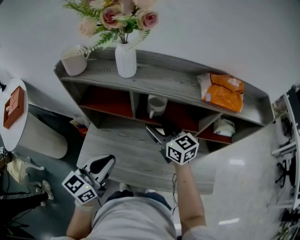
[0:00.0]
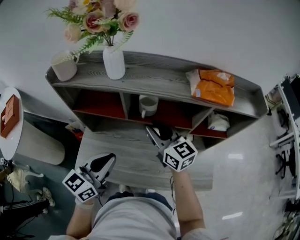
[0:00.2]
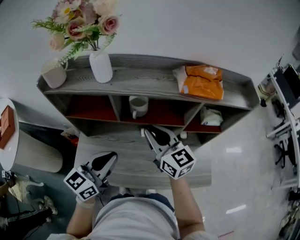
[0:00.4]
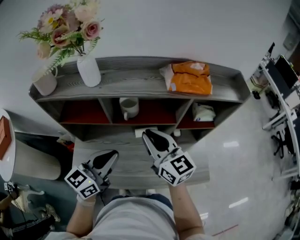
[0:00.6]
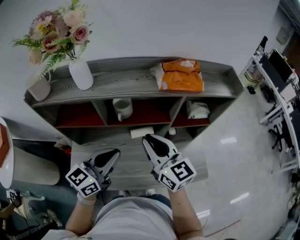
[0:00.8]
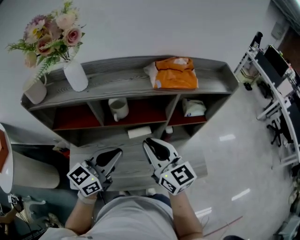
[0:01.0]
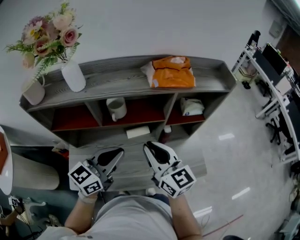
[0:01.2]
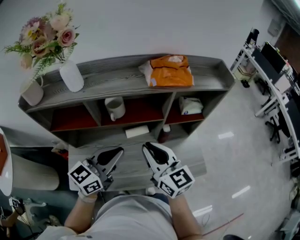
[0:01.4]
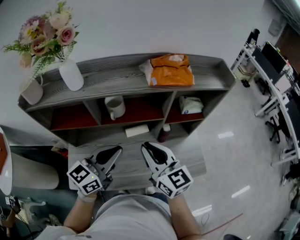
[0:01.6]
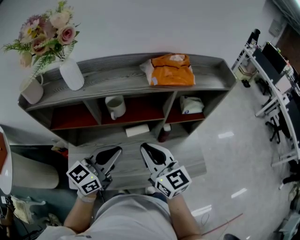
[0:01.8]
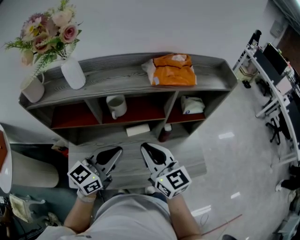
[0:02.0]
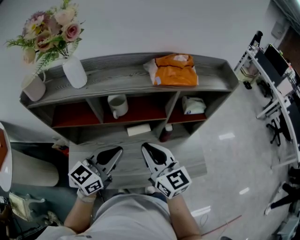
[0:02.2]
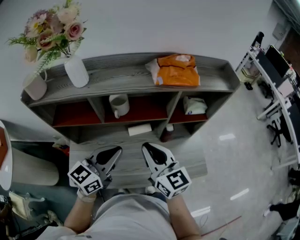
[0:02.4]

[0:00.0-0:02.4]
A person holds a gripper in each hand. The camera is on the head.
0:00.0 to 0:01.2: The left gripper goes about 15 cm to the right and forward, and rotates roughly 20 degrees, while the right gripper shifts some 15 cm to the right and backward, swivels about 30 degrees, and closes its fingers.
0:01.2 to 0:02.4: The grippers make only small movements.

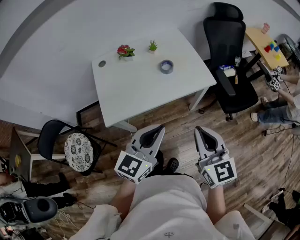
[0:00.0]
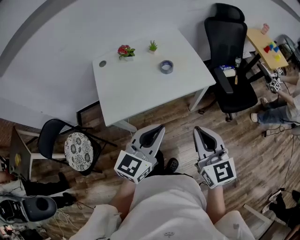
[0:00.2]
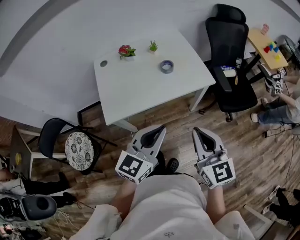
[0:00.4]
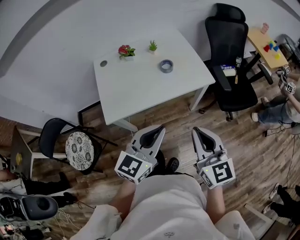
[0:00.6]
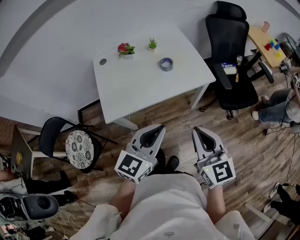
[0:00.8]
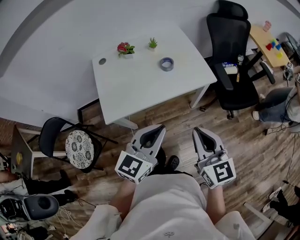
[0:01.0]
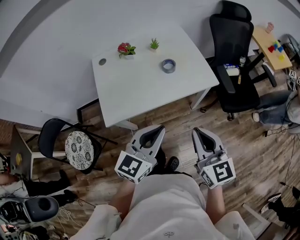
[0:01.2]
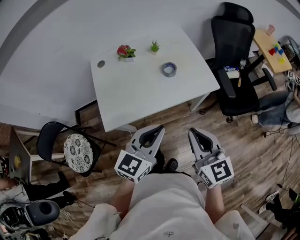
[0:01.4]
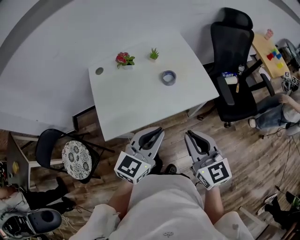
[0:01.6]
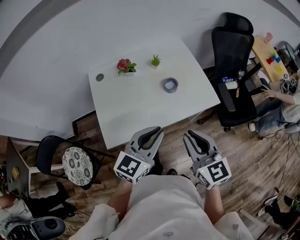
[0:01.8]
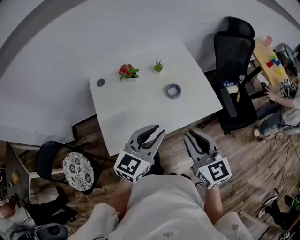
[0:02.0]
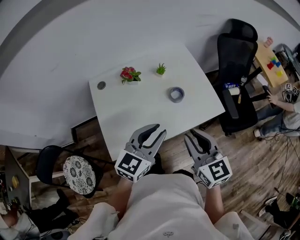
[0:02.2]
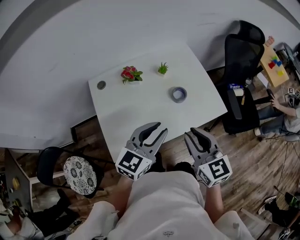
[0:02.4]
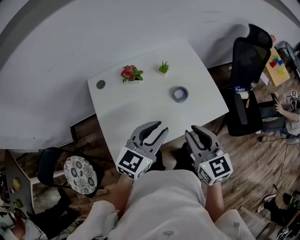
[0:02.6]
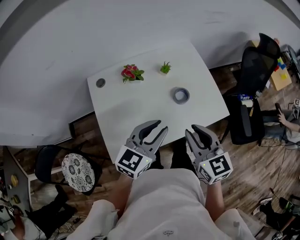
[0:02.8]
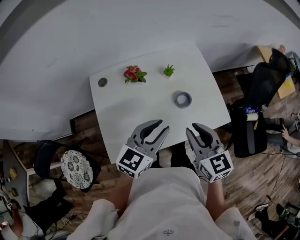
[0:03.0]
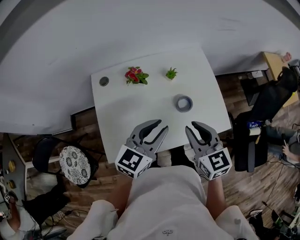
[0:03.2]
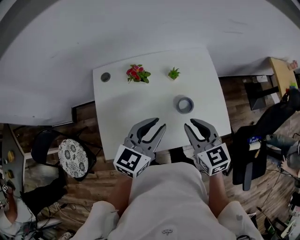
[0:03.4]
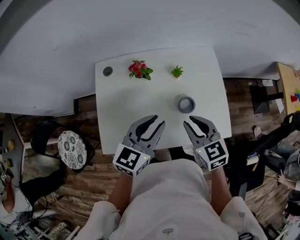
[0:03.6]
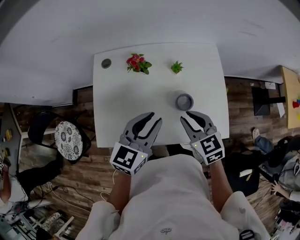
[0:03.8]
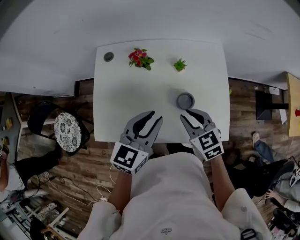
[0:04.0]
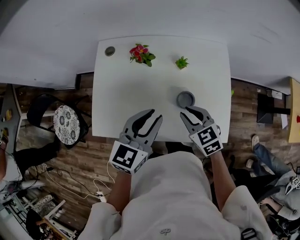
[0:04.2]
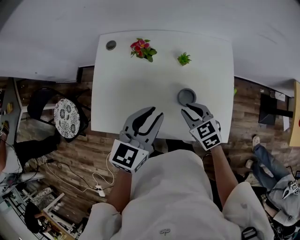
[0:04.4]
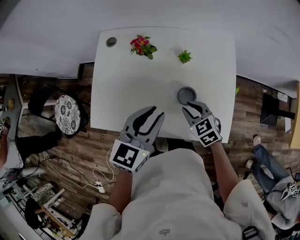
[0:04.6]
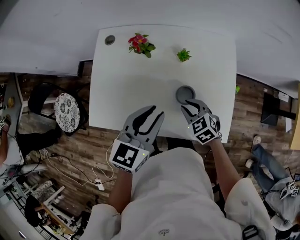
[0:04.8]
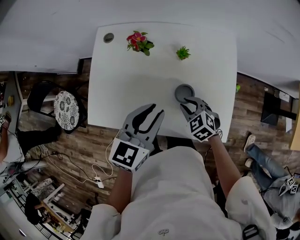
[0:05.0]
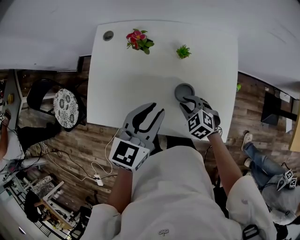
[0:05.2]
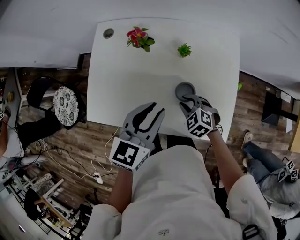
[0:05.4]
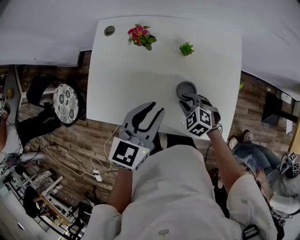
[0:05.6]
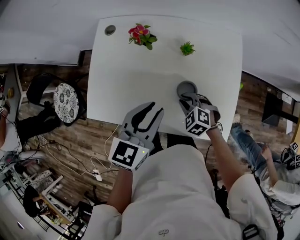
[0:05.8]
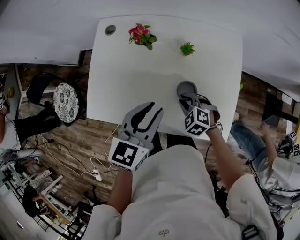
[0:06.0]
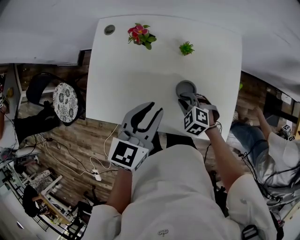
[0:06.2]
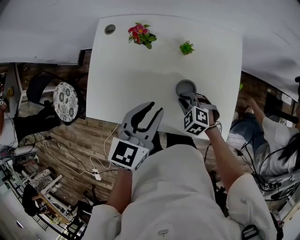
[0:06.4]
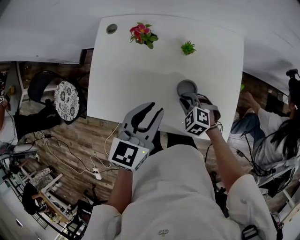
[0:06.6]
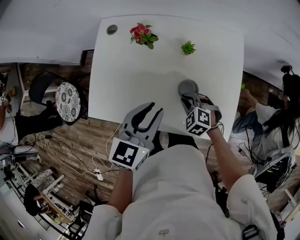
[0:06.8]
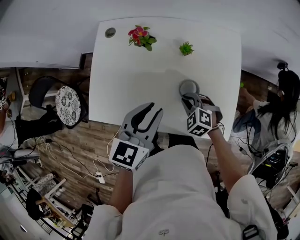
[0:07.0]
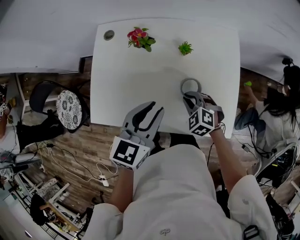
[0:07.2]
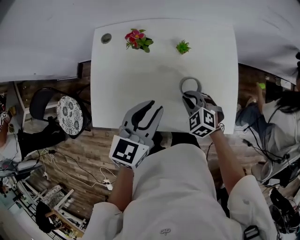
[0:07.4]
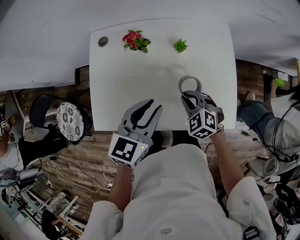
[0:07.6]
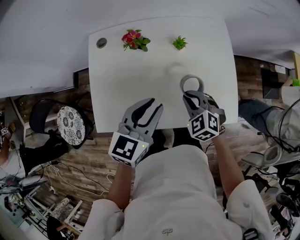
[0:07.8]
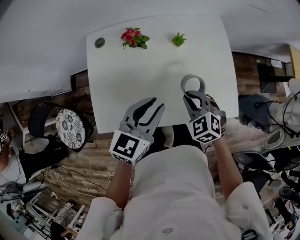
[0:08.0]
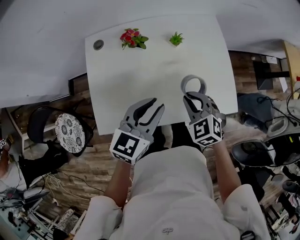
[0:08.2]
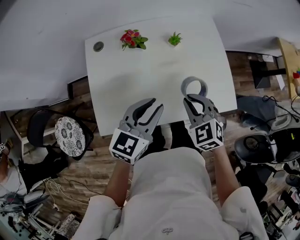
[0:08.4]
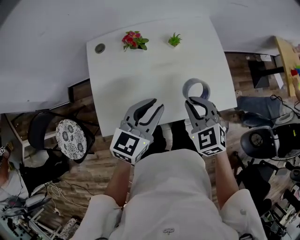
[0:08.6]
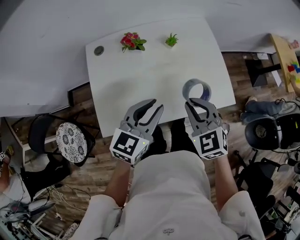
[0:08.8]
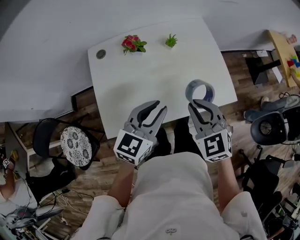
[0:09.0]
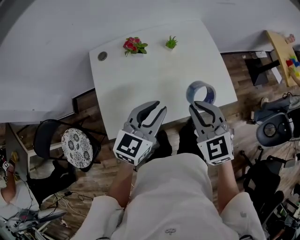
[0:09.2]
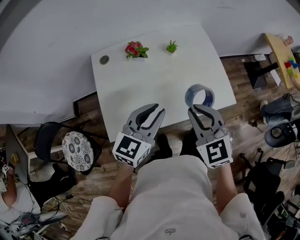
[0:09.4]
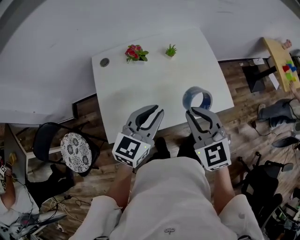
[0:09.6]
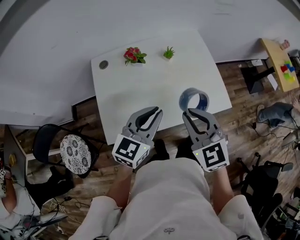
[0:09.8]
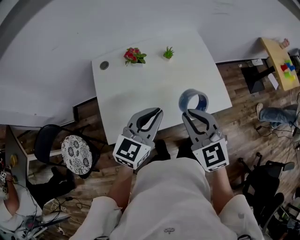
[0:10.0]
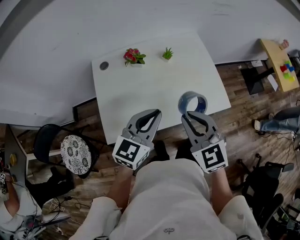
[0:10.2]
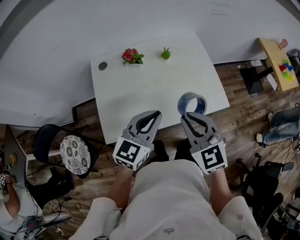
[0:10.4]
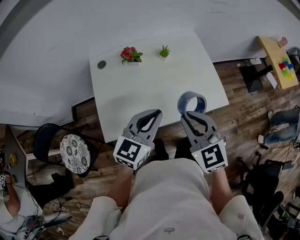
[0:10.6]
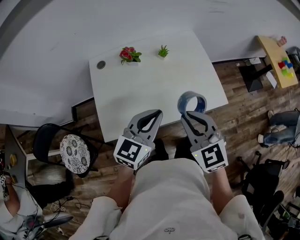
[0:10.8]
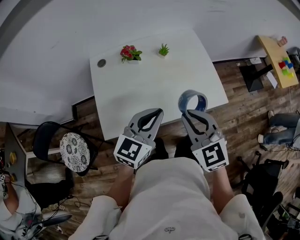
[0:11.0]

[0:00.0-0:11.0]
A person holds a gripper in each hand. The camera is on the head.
0:00.0 to 0:01.6: The right gripper travels forward and to the left by approximately 10 cm. Meanwhile the left gripper moves forward, some 10 cm.
0:01.6 to 0:03.2: The left gripper shifts about 20 cm forward and to the left, and opens. The right gripper goes approximately 20 cm forward.
0:03.2 to 0:04.8: The left gripper shifts by some 5 cm, and changes its angle by roughly 30 degrees. Meanwhile the right gripper travels downward by some 20 cm, and changes its angle by some 50 degrees.
0:04.8 to 0:06.2: The right gripper ends up about 5 cm from where it was, and rotates approximately 20 degrees.
0:06.2 to 0:07.8: The right gripper goes roughly 10 cm upward, and rotates about 20 degrees.
0:07.8 to 0:09.4: The left gripper travels backward by approximately 10 cm. Meanwhile the right gripper travels upward and backward by roughly 20 cm, and turns by approximately 30 degrees.
0:09.4 to 0:11.0: The left gripper moves approximately 5 cm.

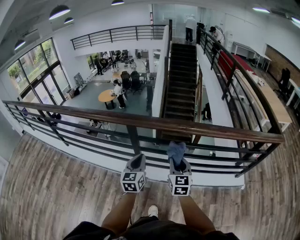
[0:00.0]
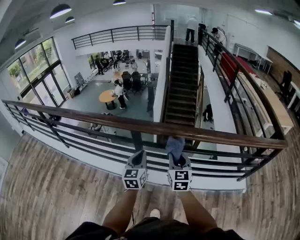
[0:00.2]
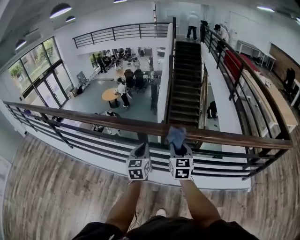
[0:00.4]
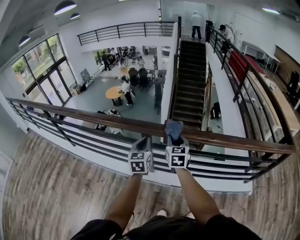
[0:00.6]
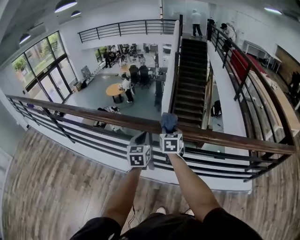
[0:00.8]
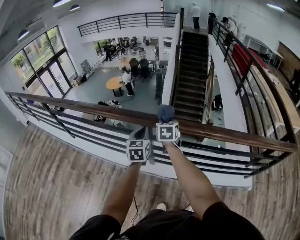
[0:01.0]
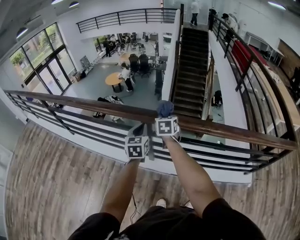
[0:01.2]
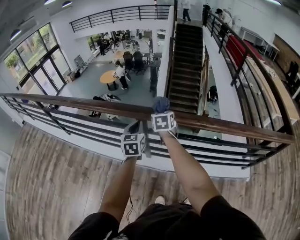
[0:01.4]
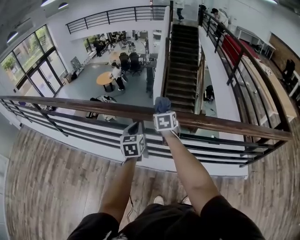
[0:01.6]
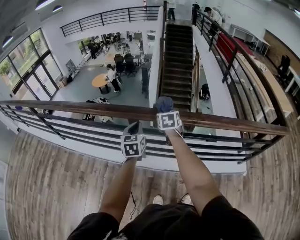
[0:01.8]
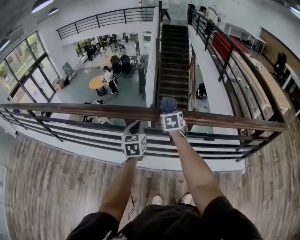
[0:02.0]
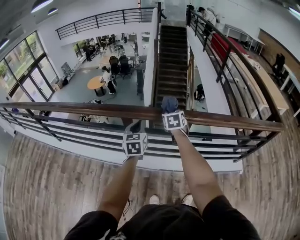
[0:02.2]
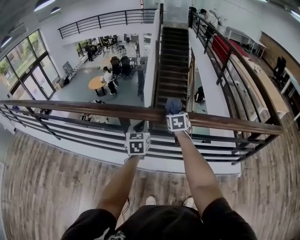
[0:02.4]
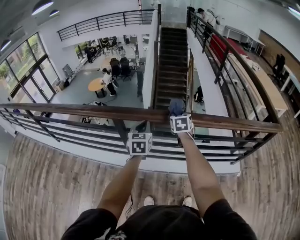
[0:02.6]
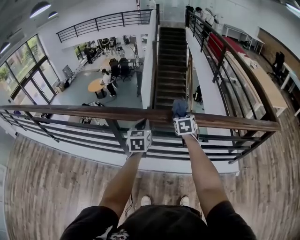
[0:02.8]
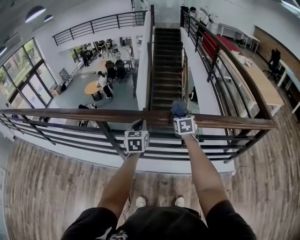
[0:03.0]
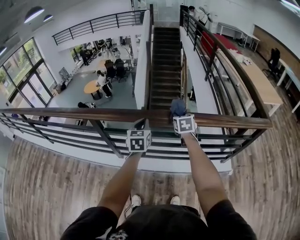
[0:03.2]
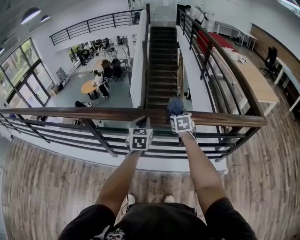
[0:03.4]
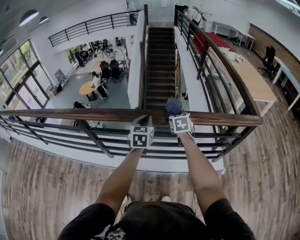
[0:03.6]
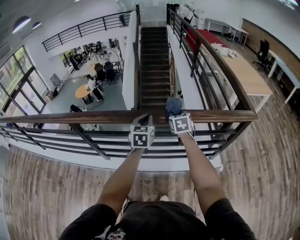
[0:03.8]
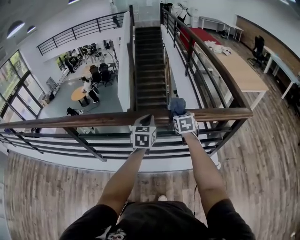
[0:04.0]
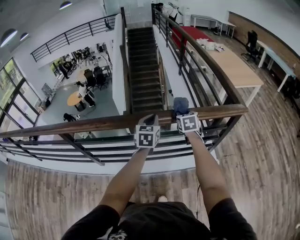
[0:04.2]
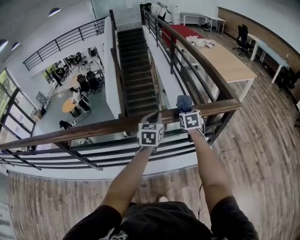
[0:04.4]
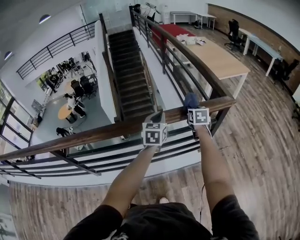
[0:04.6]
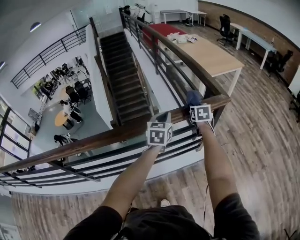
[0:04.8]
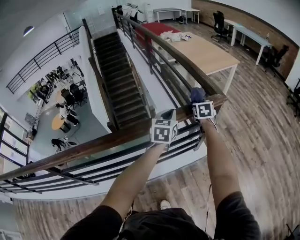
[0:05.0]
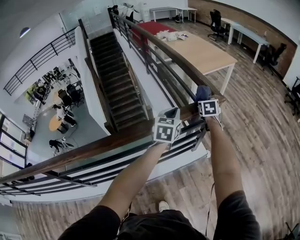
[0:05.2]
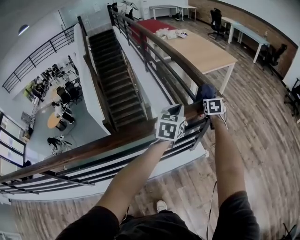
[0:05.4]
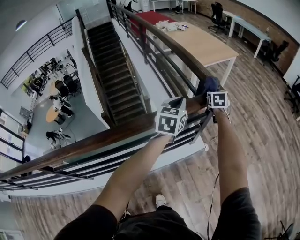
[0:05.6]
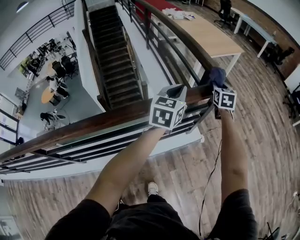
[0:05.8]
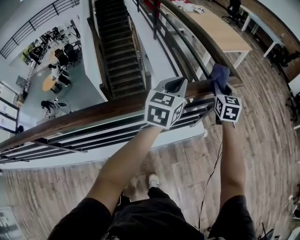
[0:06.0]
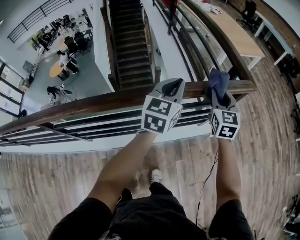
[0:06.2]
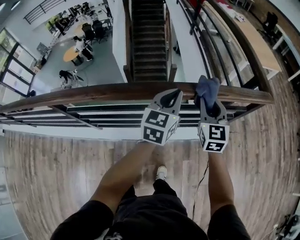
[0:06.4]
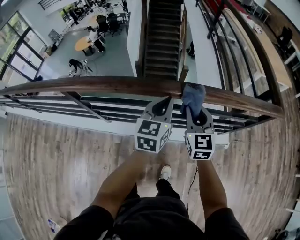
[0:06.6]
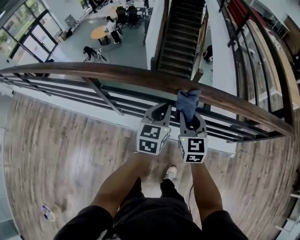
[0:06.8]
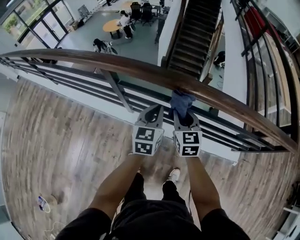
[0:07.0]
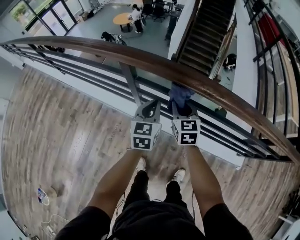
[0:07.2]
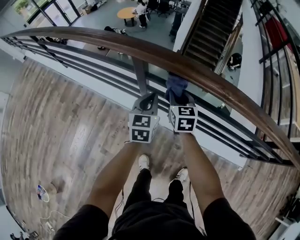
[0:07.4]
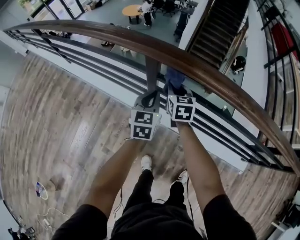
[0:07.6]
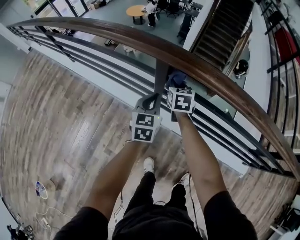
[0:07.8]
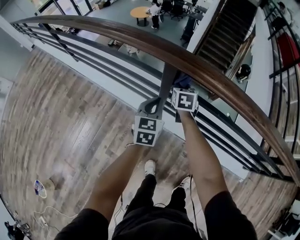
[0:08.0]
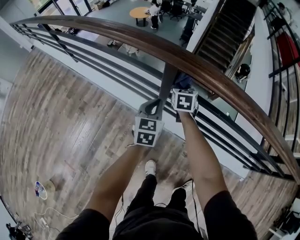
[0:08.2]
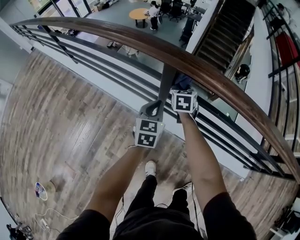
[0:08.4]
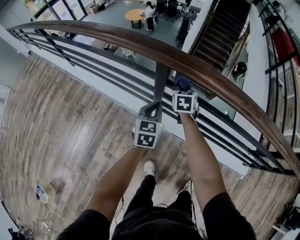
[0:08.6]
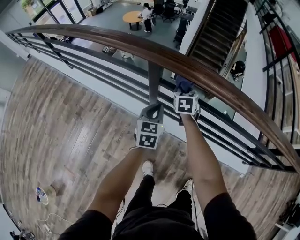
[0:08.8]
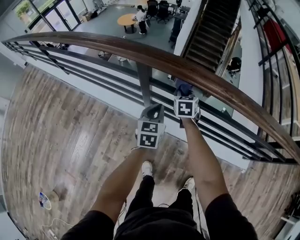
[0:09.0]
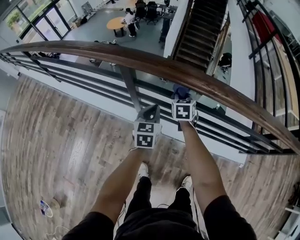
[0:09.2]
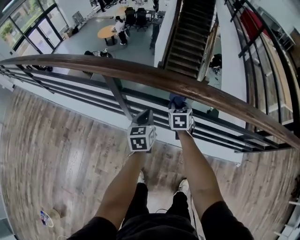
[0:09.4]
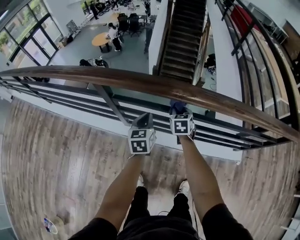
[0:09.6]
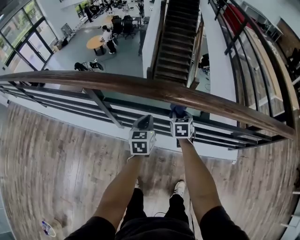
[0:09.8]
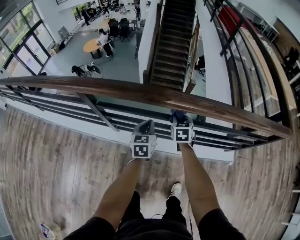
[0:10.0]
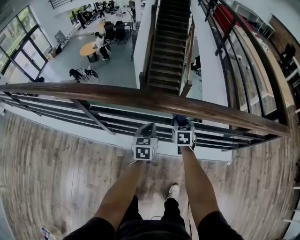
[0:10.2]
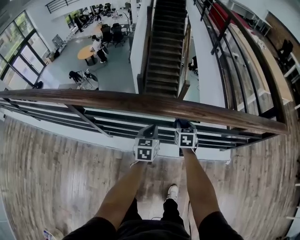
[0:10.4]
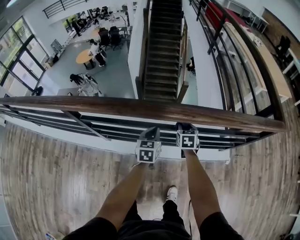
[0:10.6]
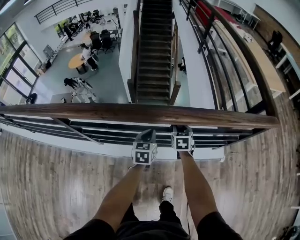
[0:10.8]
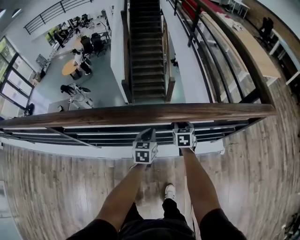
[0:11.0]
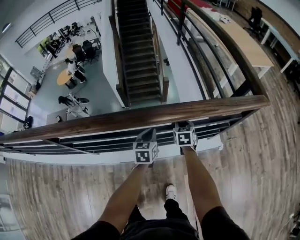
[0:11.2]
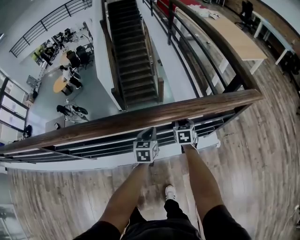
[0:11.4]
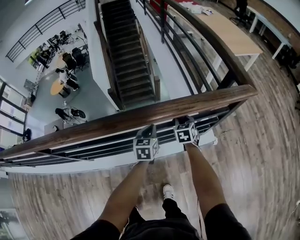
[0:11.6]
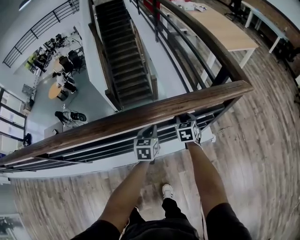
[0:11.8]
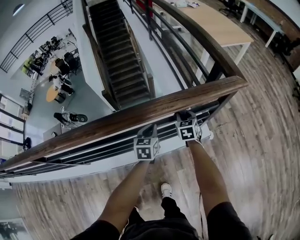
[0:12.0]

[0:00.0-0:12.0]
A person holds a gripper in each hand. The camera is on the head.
0:00.0 to 0:01.6: The left gripper is displaced forward and to the left by some 20 cm; the right gripper travels forward and to the left by approximately 30 cm, and changes its angle by some 20 degrees.
0:01.6 to 0:03.0: Both grippers move to the right, about 35 cm.
0:03.0 to 0:04.4: The pair of grippers is taken to the right, some 40 cm. The left gripper swivels roughly 20 degrees.
0:04.4 to 0:06.0: The right gripper turns by approximately 20 degrees, while the left gripper changes its angle by approximately 30 degrees.
0:06.0 to 0:07.6: The pair of grippers is taken some 1 m. The right gripper swivels some 50 degrees, while the left gripper turns by about 60 degrees.
0:07.6 to 0:09.0: The left gripper moves to the right, approximately 5 cm; the right gripper is displaced to the right by about 10 cm.
0:09.0 to 0:10.4: The two grippers go about 40 cm to the right.
0:10.4 to 0:12.0: The pair of grippers is taken to the right, about 40 cm. The left gripper turns by about 20 degrees.
